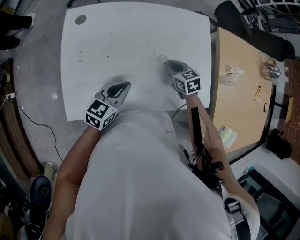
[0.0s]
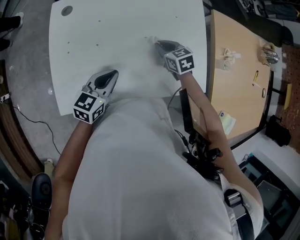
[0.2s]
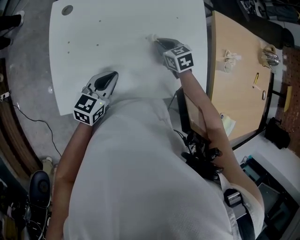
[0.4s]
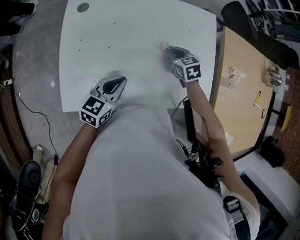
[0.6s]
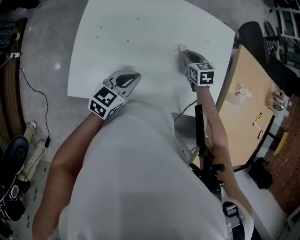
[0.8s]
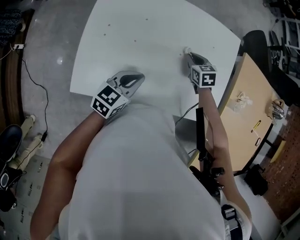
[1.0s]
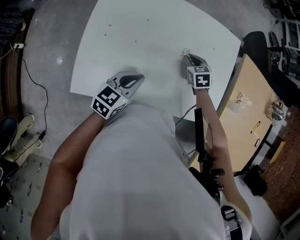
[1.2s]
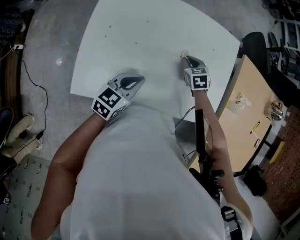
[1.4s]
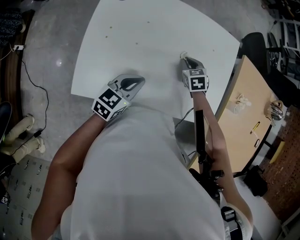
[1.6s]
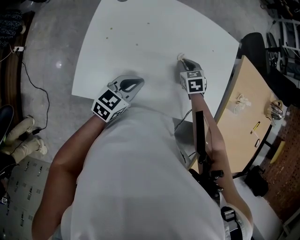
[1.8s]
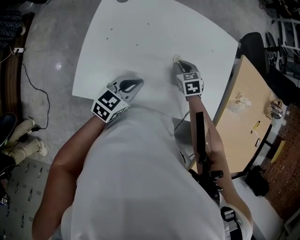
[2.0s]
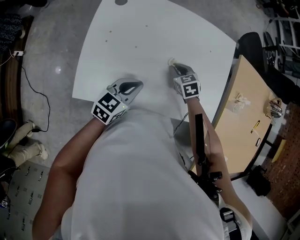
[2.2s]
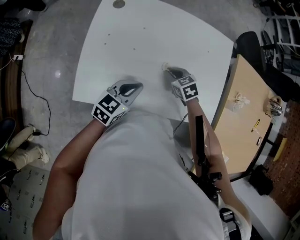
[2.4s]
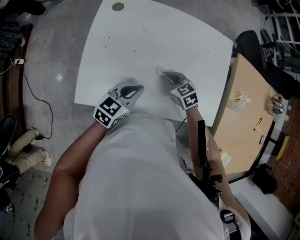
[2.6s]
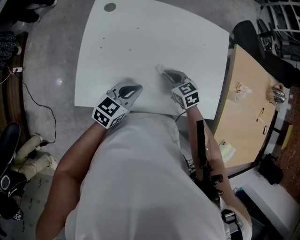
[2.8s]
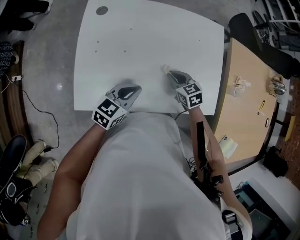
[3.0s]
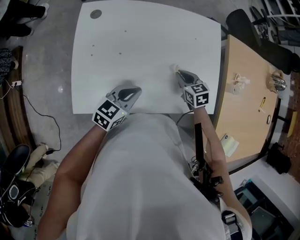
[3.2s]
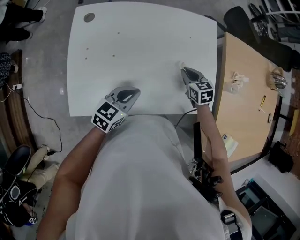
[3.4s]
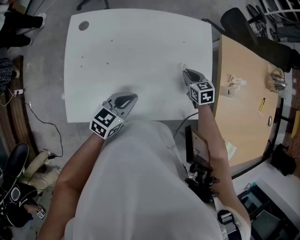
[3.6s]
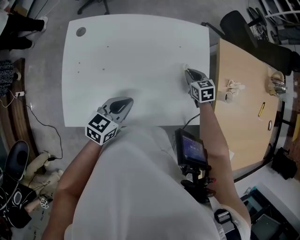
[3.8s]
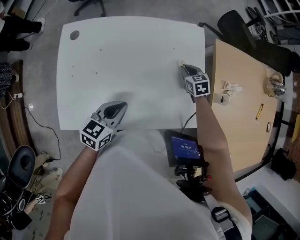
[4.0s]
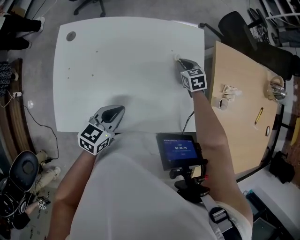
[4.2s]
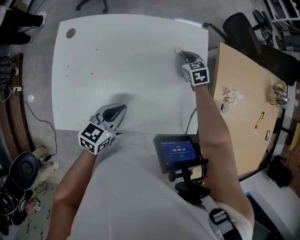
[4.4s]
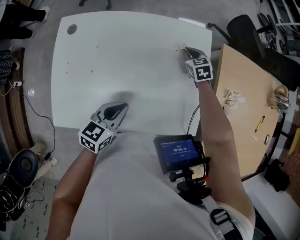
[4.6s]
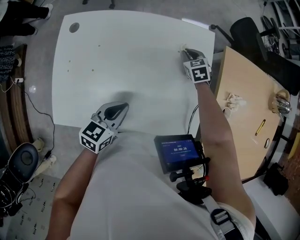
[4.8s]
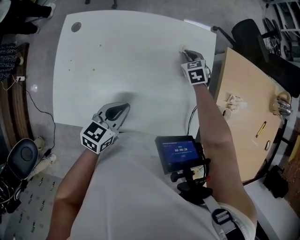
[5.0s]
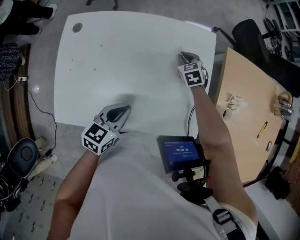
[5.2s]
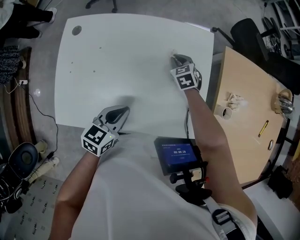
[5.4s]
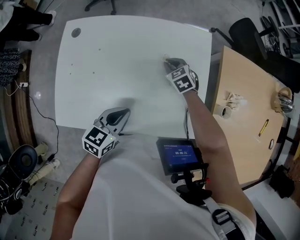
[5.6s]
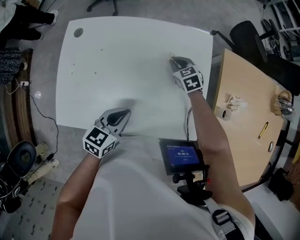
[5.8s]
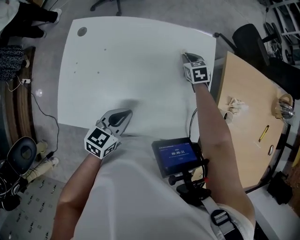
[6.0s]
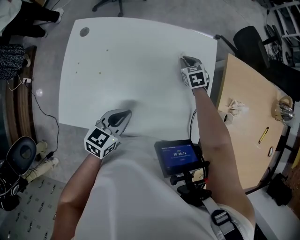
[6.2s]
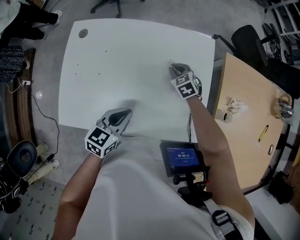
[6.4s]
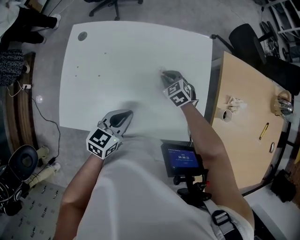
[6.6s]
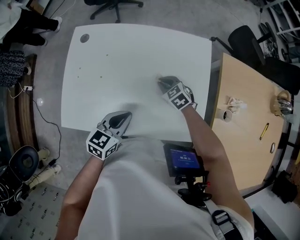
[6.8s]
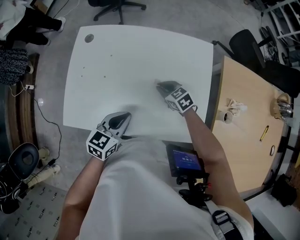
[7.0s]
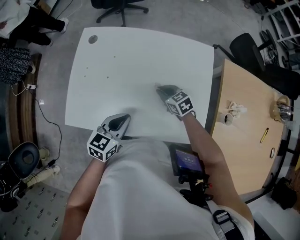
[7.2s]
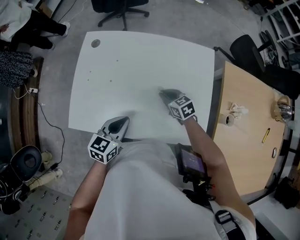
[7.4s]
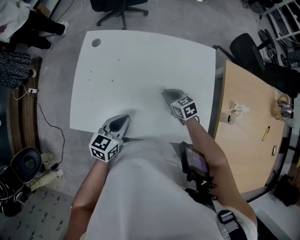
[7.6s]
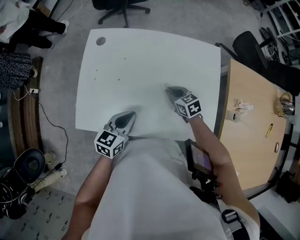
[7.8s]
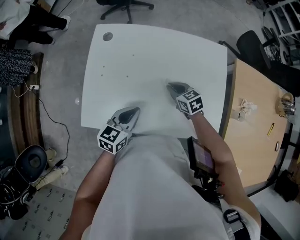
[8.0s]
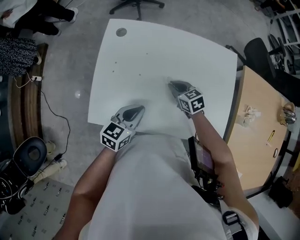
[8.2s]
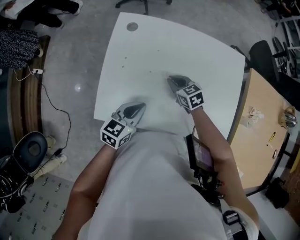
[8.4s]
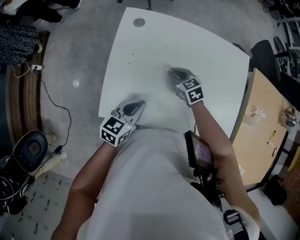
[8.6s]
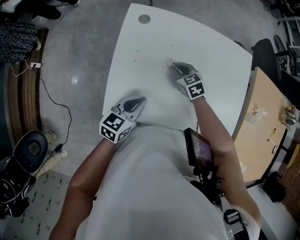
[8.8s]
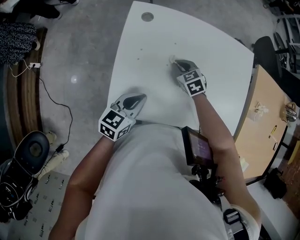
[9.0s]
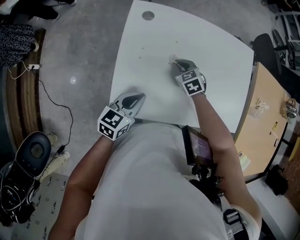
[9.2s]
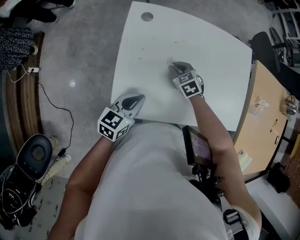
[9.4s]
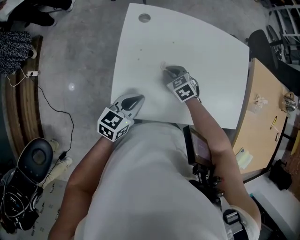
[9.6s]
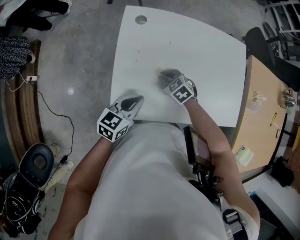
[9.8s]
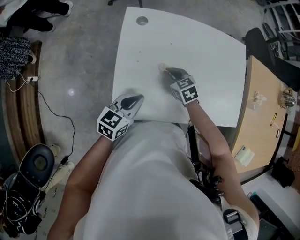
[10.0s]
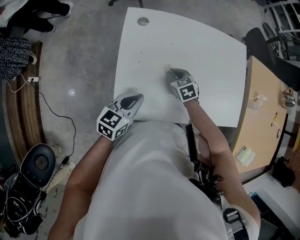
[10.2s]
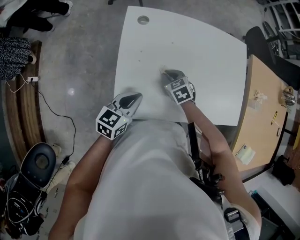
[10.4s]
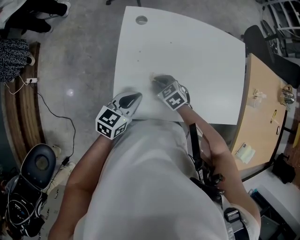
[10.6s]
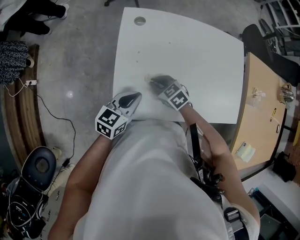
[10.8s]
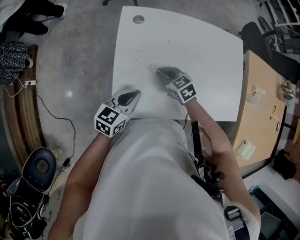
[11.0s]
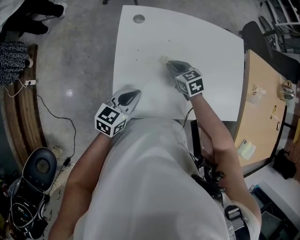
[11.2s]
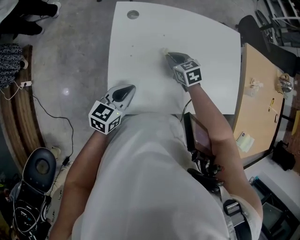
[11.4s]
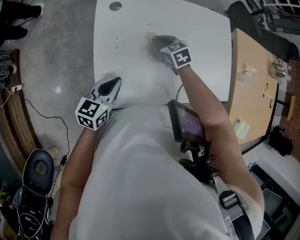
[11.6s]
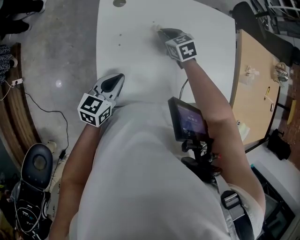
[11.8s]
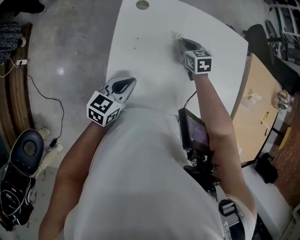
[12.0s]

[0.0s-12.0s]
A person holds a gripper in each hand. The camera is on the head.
0.0s to 1.6s: The right gripper ends up approximately 5 cm from where it was, and swivels approximately 20 degrees.
1.6s to 3.0s: The right gripper travels backward by approximately 10 cm.
3.0s to 4.4s: The left gripper shifts some 10 cm to the right and forward. The right gripper travels forward and to the right by roughly 25 cm.
4.4s to 6.0s: The right gripper reaches some 5 cm backward, then returns.
6.0s to 7.6s: The right gripper shifts approximately 20 cm backward and to the left, and turns by some 20 degrees; the left gripper is displaced to the left by roughly 5 cm.
7.6s to 9.0s: Both grippers travel together to the left, some 20 cm. The right gripper swivels roughly 20 degrees.
9.0s to 10.4s: The right gripper shifts some 5 cm backward.
10.4s to 12.0s: The right gripper moves forward and to the right, roughly 15 cm.

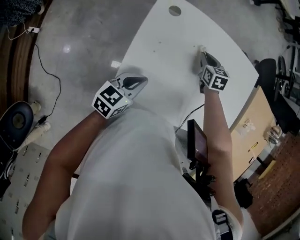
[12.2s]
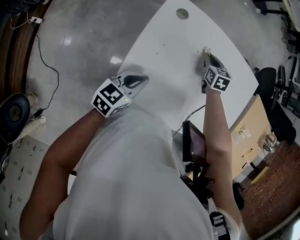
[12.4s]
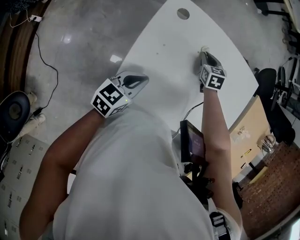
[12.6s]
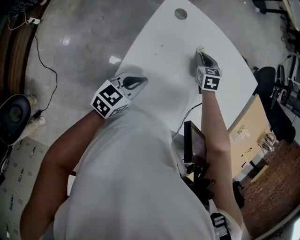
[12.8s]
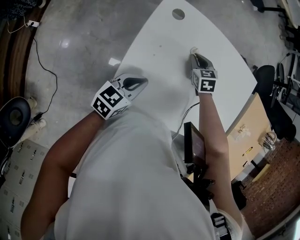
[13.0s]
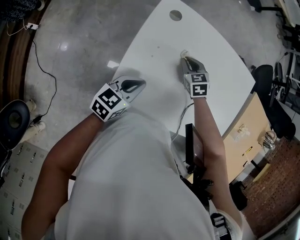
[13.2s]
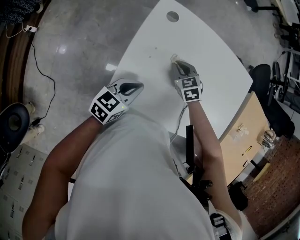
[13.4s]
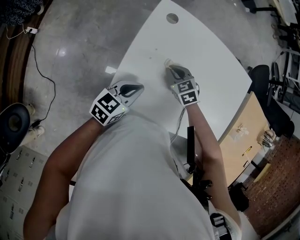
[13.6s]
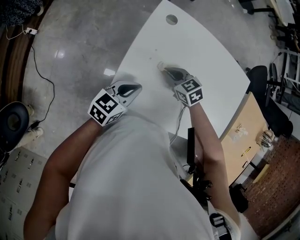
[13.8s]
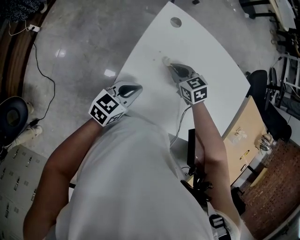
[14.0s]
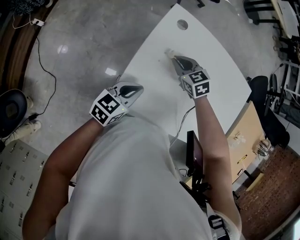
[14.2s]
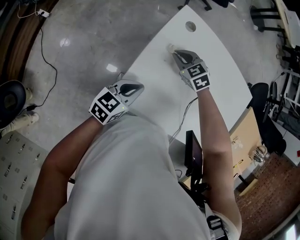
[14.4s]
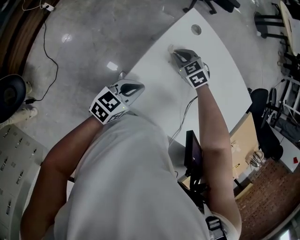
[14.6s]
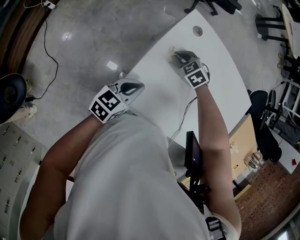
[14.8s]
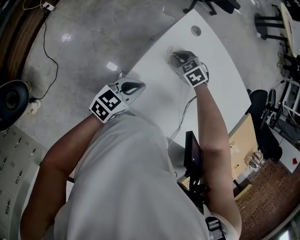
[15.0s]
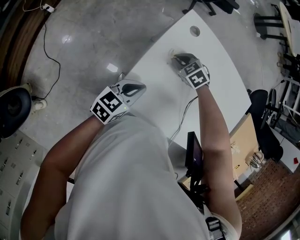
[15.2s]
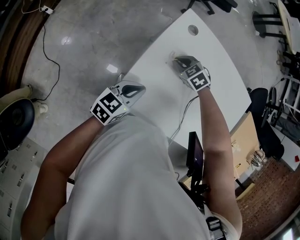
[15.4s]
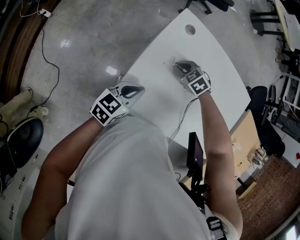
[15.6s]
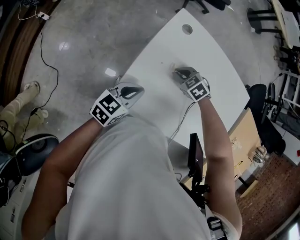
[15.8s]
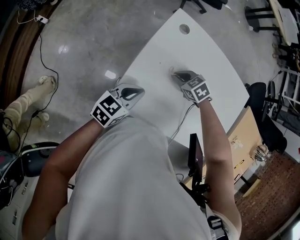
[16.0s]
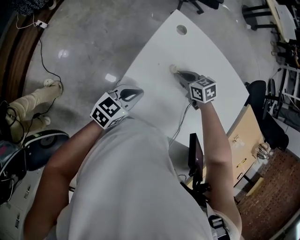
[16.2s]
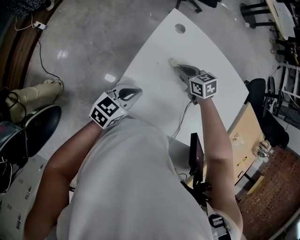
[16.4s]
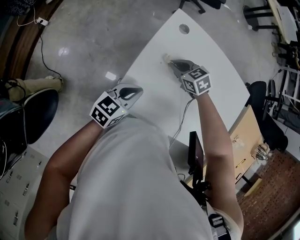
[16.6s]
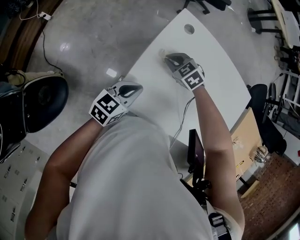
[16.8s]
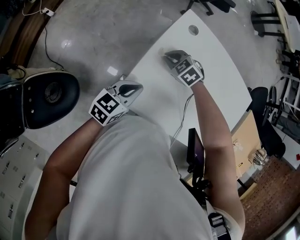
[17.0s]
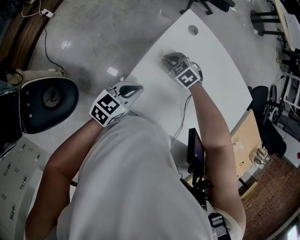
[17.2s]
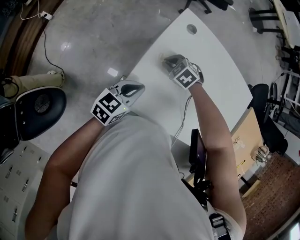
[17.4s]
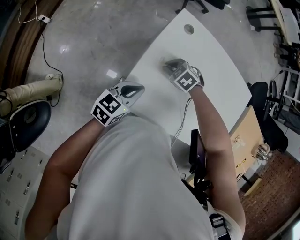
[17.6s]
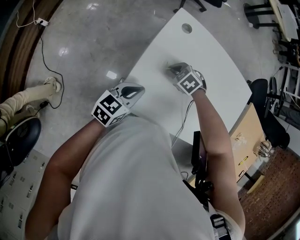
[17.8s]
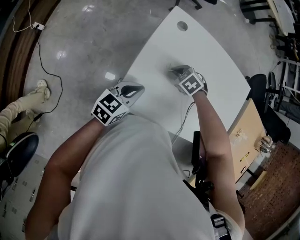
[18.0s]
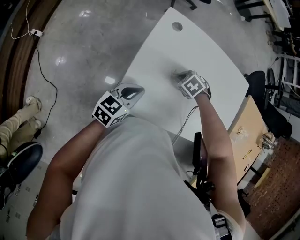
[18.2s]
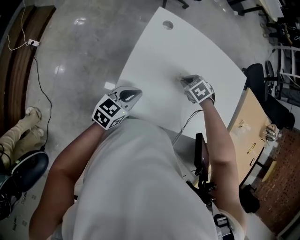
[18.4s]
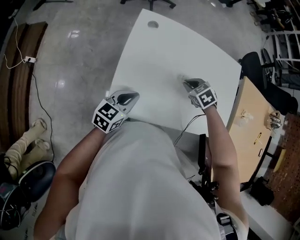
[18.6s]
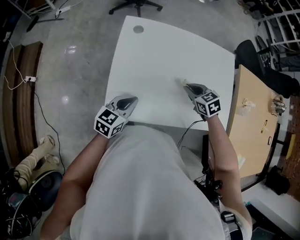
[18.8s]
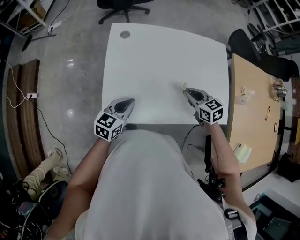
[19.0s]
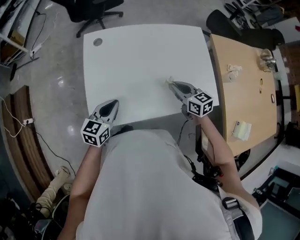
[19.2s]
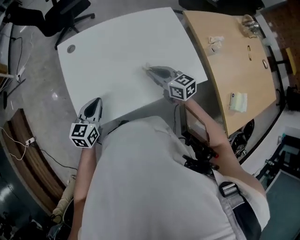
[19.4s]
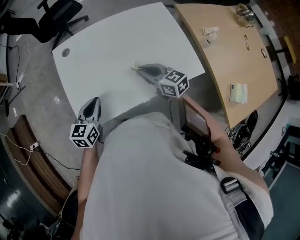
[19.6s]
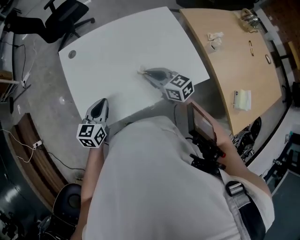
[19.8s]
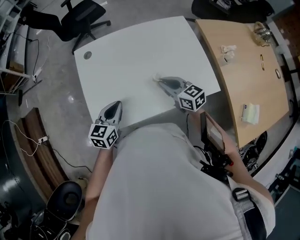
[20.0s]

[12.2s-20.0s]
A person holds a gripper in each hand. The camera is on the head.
12.2s to 13.8s: The right gripper changes place by approximately 20 cm, and rotates some 40 degrees.
13.8s to 15.4s: The right gripper moves forward, approximately 5 cm, and swivels about 30 degrees.
15.4s to 16.8s: The right gripper changes place by approximately 5 cm.
16.8s to 18.4s: The right gripper changes place by some 20 cm, and changes its angle by approximately 30 degrees.
18.4s to 20.0s: The left gripper ends up about 15 cm from where it was; the right gripper ends up approximately 20 cm from where it was, and angles its fingers upward, by approximately 60 degrees.

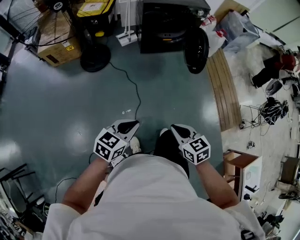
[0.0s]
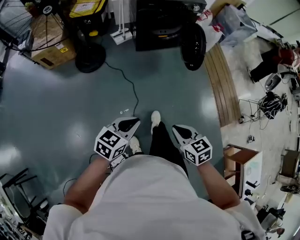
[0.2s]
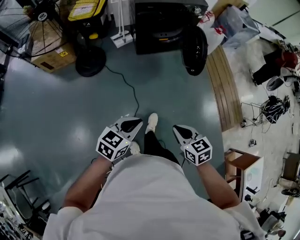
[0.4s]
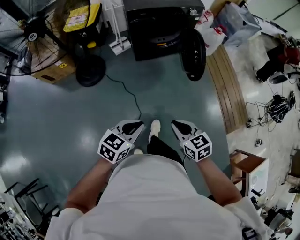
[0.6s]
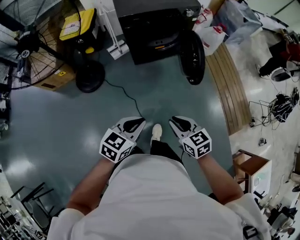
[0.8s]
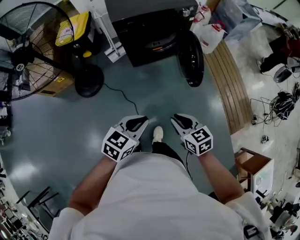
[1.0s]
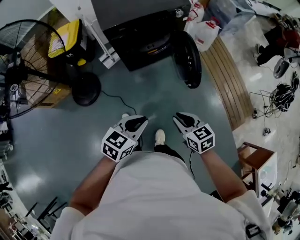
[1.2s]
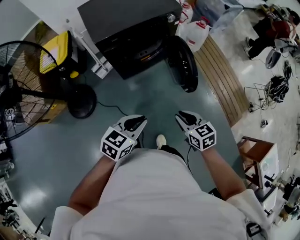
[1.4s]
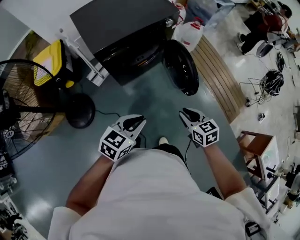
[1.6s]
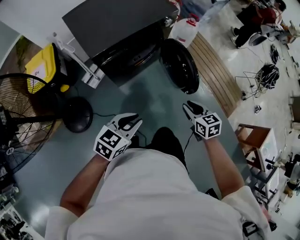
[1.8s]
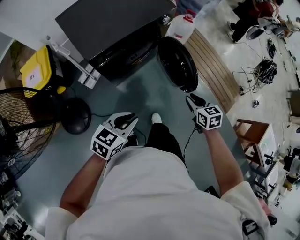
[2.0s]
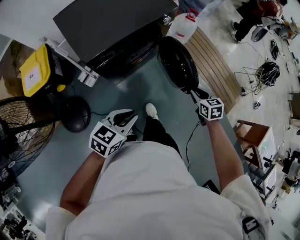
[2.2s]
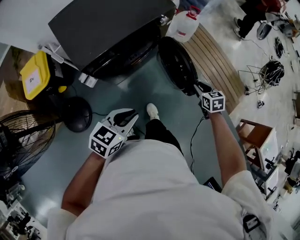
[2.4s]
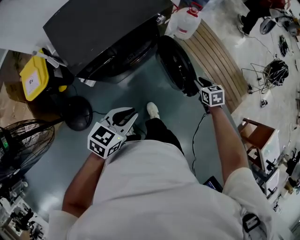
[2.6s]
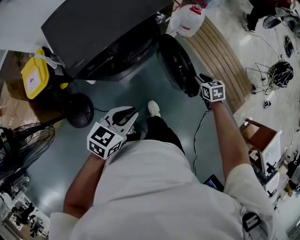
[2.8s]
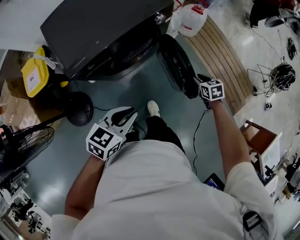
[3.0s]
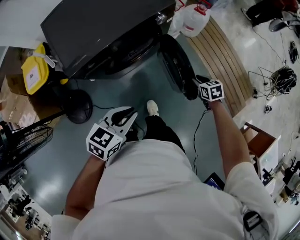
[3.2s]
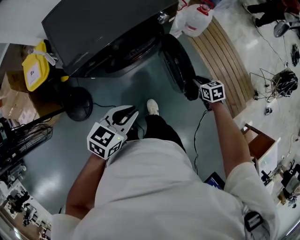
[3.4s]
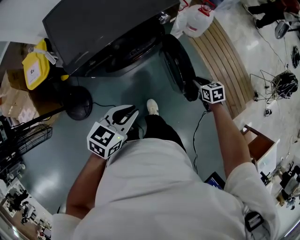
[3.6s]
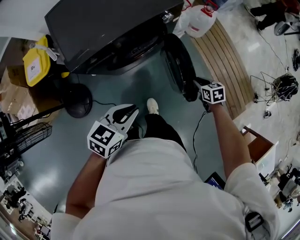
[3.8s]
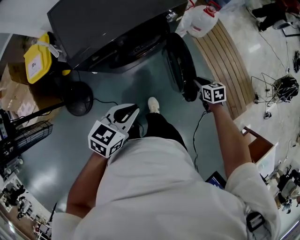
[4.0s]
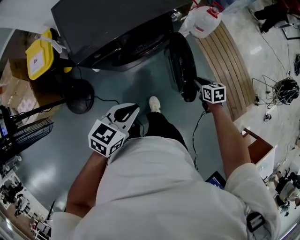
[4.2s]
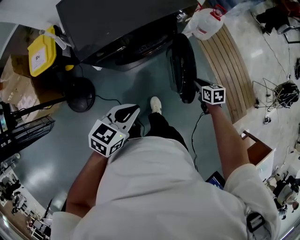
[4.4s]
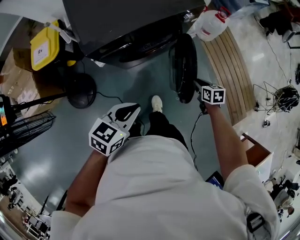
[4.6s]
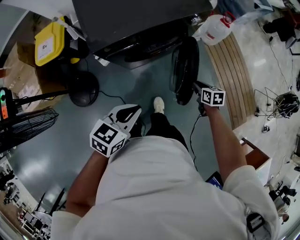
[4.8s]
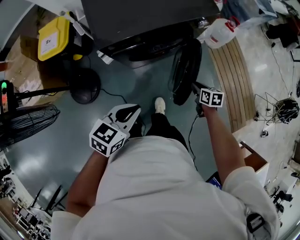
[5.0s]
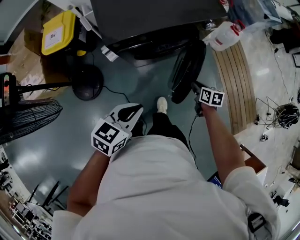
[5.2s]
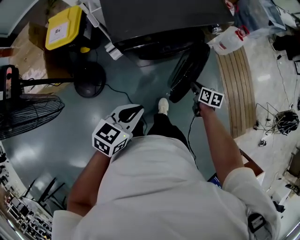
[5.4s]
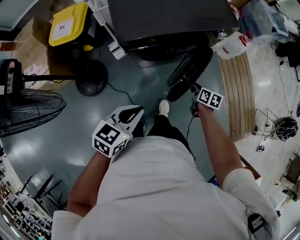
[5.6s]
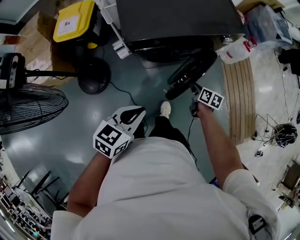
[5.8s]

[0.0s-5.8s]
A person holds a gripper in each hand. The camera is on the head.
0.0s to 1.4s: The pair of grippers is taken forward, roughly 40 cm.
1.4s to 2.8s: The left gripper travels forward by about 20 cm; the right gripper heads forward and downward, covering about 35 cm, and turns by roughly 20 degrees.
2.8s to 4.4s: The right gripper moves to the left, roughly 5 cm.
4.4s to 5.8s: The left gripper heads to the left, covering some 10 cm. Meanwhile the right gripper heads to the left, covering about 15 cm.
